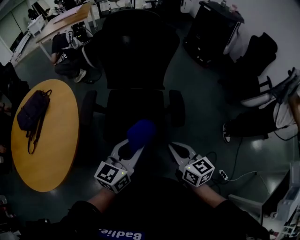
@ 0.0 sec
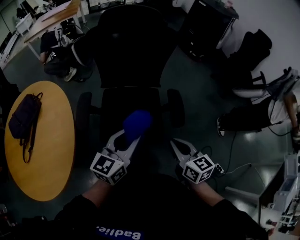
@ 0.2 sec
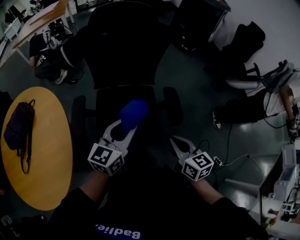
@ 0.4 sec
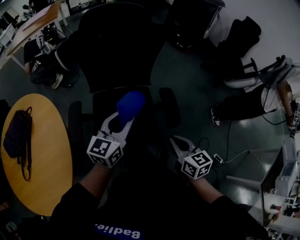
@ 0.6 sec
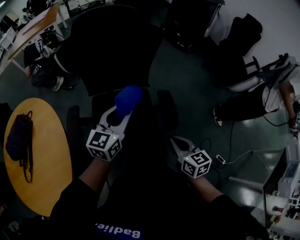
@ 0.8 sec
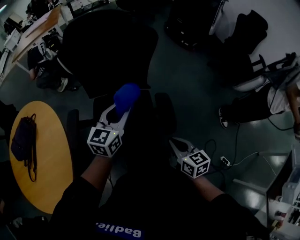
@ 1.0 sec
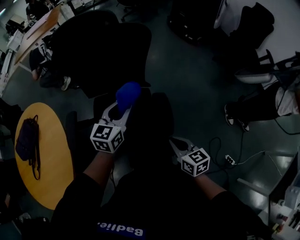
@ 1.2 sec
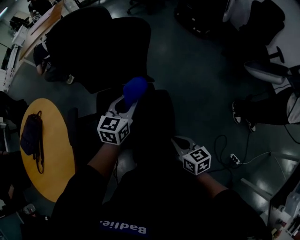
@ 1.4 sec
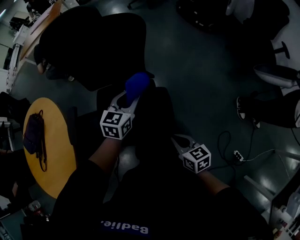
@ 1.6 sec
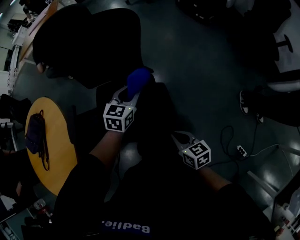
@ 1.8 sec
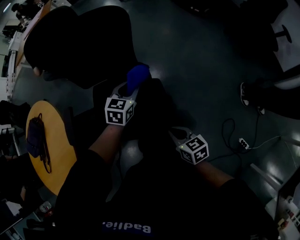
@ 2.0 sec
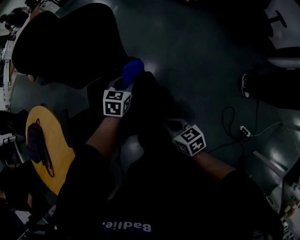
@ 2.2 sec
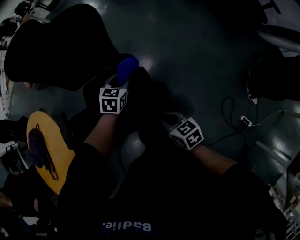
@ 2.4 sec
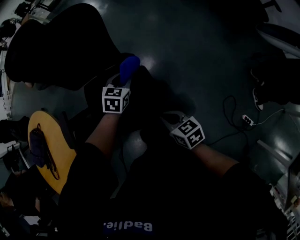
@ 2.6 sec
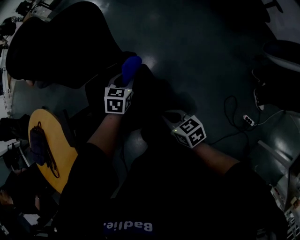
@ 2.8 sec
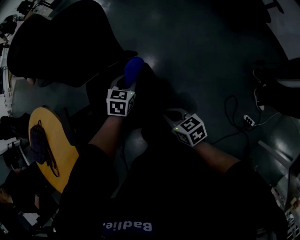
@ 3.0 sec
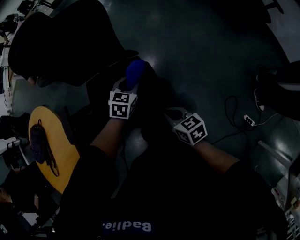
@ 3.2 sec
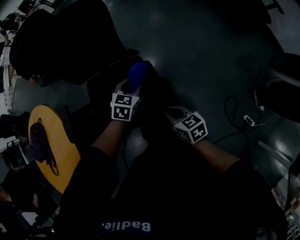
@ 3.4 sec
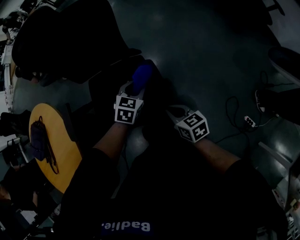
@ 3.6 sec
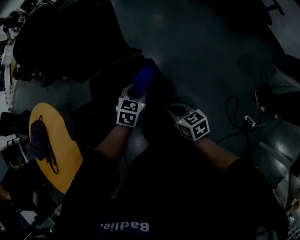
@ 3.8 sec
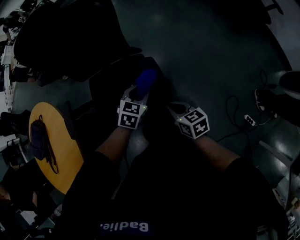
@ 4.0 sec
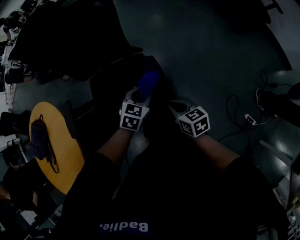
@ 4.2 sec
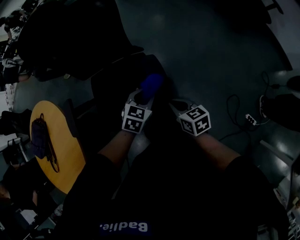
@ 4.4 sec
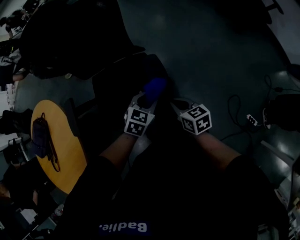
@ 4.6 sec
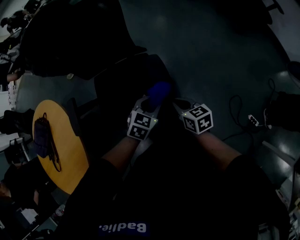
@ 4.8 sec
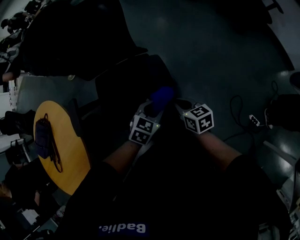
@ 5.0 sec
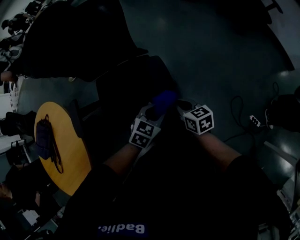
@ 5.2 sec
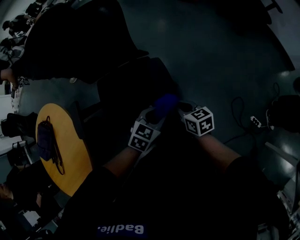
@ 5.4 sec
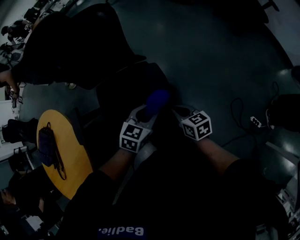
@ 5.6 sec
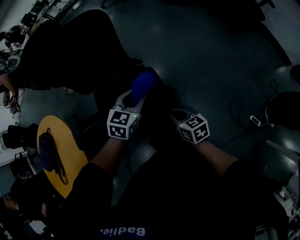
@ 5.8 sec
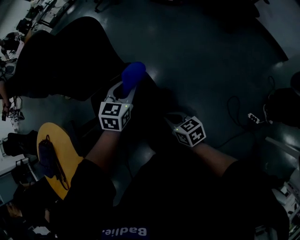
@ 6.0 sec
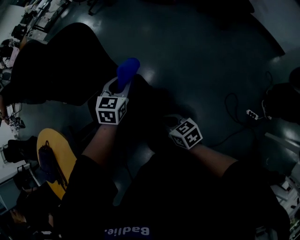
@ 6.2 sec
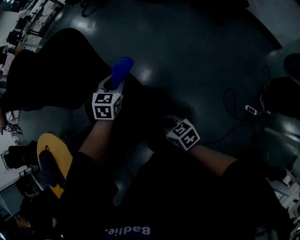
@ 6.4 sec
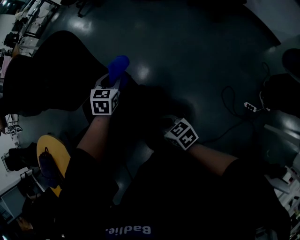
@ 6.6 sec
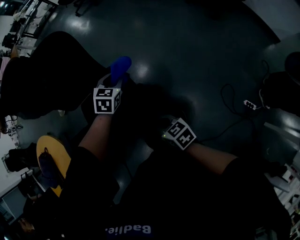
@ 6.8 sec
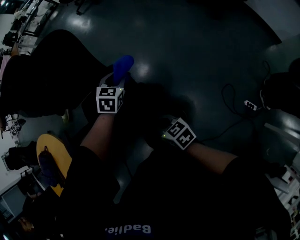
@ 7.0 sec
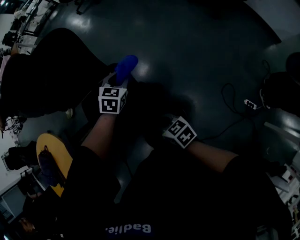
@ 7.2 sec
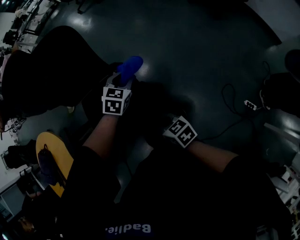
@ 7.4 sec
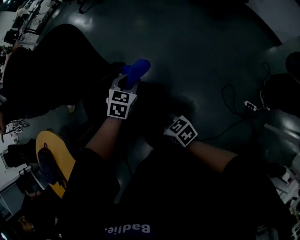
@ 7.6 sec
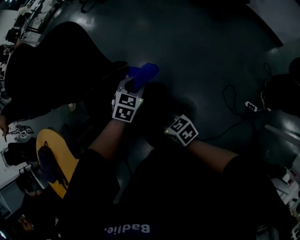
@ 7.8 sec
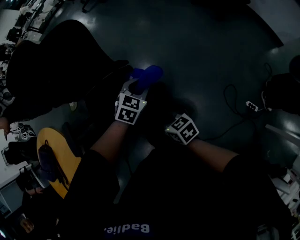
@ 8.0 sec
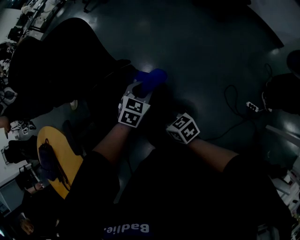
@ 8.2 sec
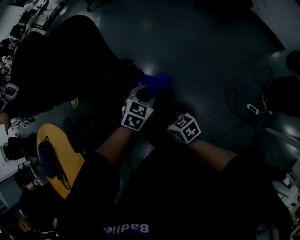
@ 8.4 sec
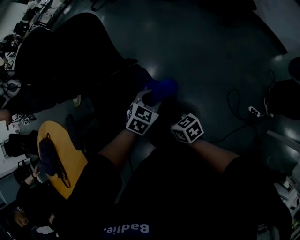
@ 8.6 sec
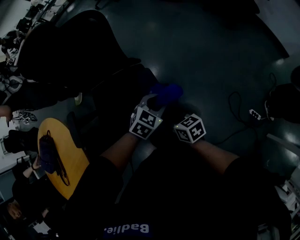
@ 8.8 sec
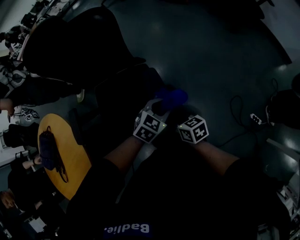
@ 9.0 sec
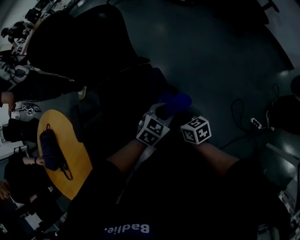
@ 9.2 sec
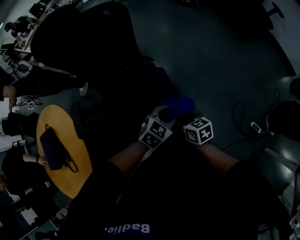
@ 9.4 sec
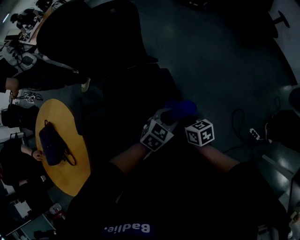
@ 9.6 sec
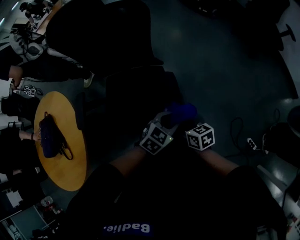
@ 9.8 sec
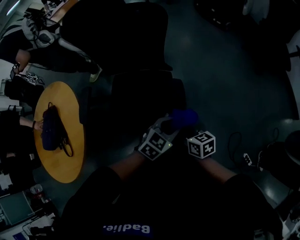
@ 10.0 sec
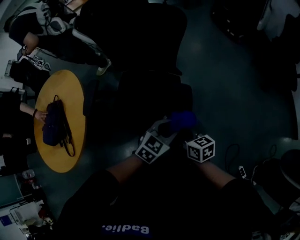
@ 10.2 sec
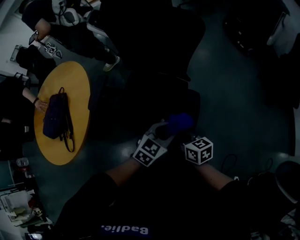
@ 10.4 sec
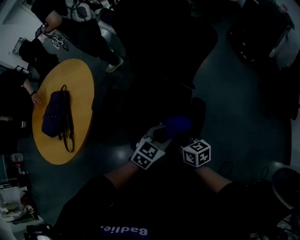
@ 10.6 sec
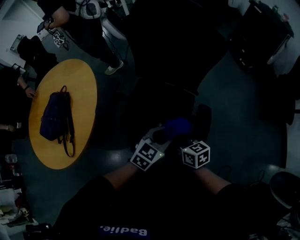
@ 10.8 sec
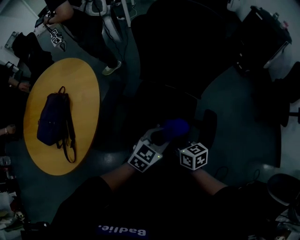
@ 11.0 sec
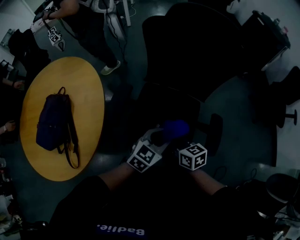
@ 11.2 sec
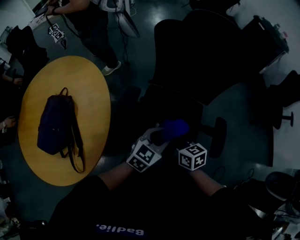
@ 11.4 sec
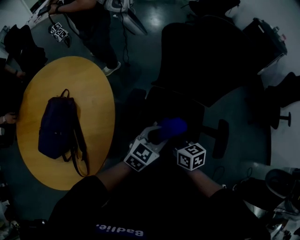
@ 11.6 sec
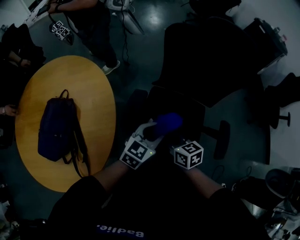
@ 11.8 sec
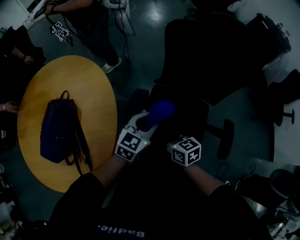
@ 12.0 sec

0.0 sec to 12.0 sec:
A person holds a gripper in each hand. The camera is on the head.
0.0 sec to 1.6 sec: The left gripper goes some 30 cm forward, and turns by about 20 degrees; the right gripper is displaced downward, to the right and forward by roughly 20 cm.
1.6 sec to 3.0 sec: The left gripper heads downward, covering roughly 10 cm, and changes its angle by about 20 degrees.
3.0 sec to 4.4 sec: The left gripper shifts roughly 10 cm backward.
4.4 sec to 6.0 sec: The left gripper travels forward and upward by some 15 cm.
6.0 sec to 7.6 sec: The left gripper goes some 10 cm downward and to the right.
7.6 sec to 9.0 sec: The left gripper is displaced backward by roughly 15 cm.
9.0 sec to 10.4 sec: The right gripper is displaced upward by approximately 5 cm, and rotates some 20 degrees; the left gripper moves to the left and upward, about 10 cm, and changes its angle by some 30 degrees.
10.4 sec to 12.0 sec: The left gripper travels to the left and forward by some 40 cm; the right gripper goes roughly 35 cm to the left.

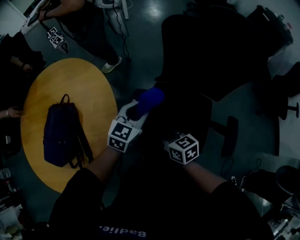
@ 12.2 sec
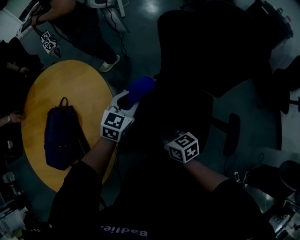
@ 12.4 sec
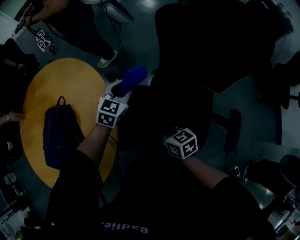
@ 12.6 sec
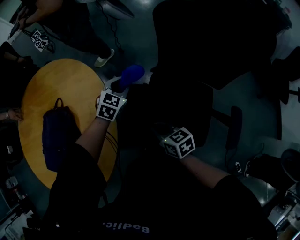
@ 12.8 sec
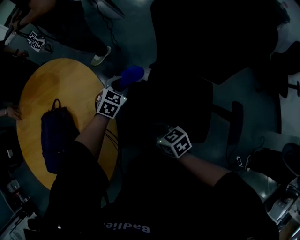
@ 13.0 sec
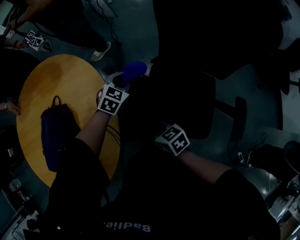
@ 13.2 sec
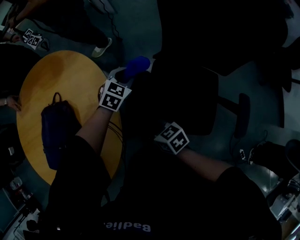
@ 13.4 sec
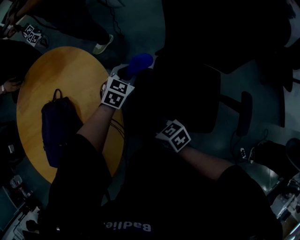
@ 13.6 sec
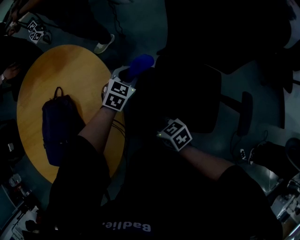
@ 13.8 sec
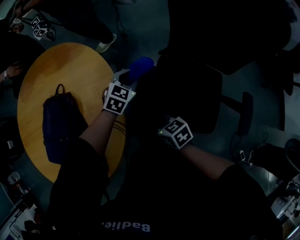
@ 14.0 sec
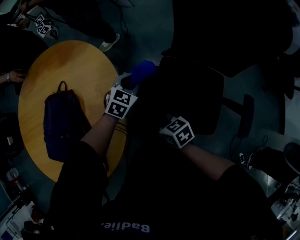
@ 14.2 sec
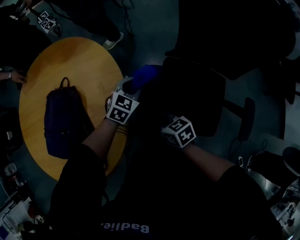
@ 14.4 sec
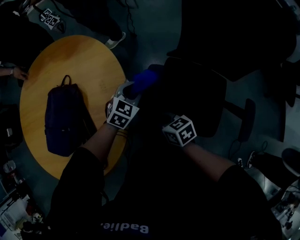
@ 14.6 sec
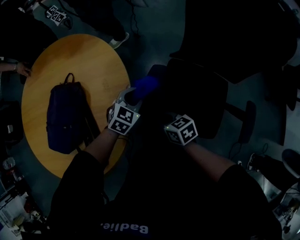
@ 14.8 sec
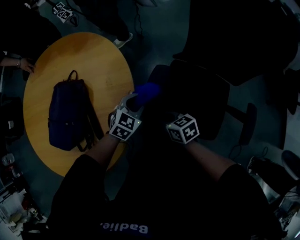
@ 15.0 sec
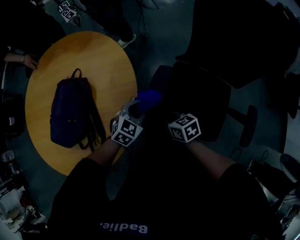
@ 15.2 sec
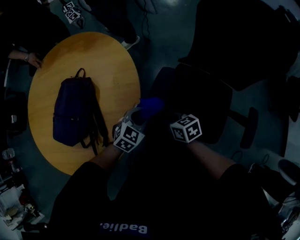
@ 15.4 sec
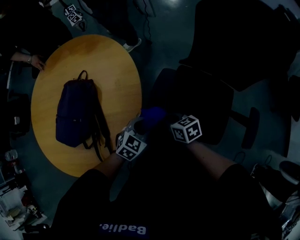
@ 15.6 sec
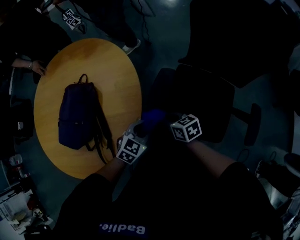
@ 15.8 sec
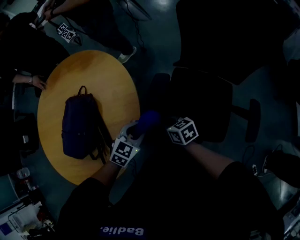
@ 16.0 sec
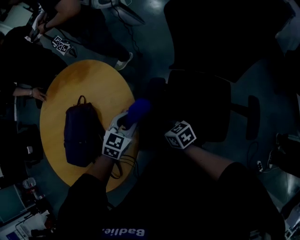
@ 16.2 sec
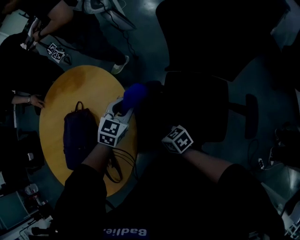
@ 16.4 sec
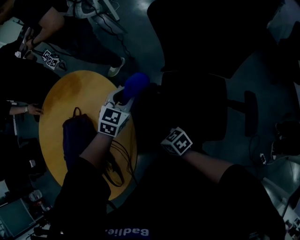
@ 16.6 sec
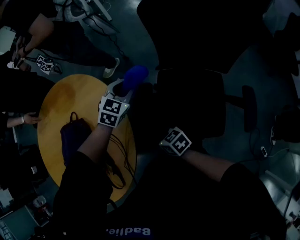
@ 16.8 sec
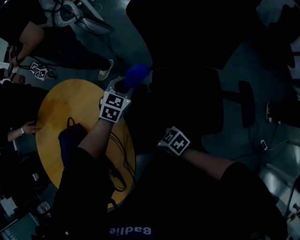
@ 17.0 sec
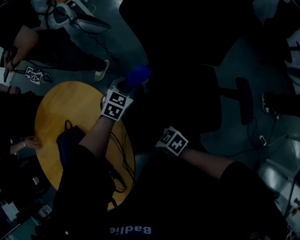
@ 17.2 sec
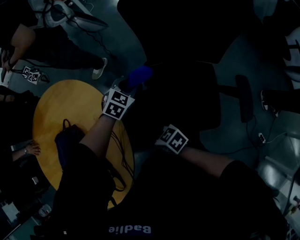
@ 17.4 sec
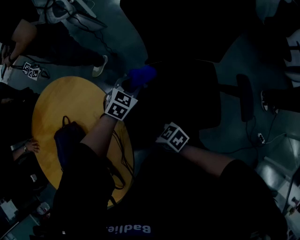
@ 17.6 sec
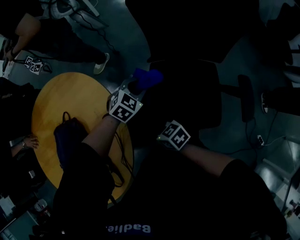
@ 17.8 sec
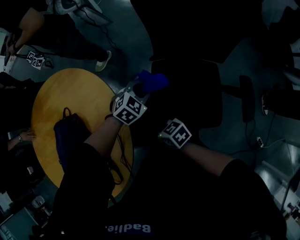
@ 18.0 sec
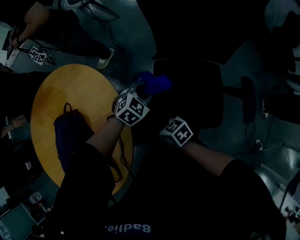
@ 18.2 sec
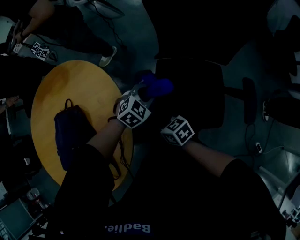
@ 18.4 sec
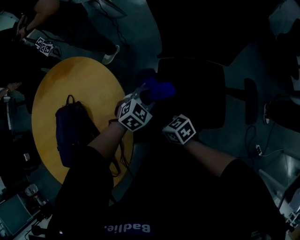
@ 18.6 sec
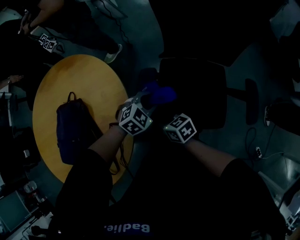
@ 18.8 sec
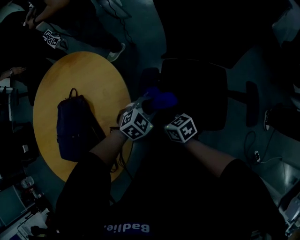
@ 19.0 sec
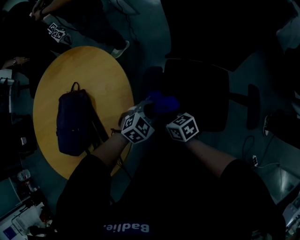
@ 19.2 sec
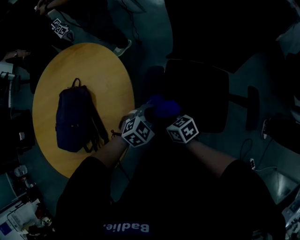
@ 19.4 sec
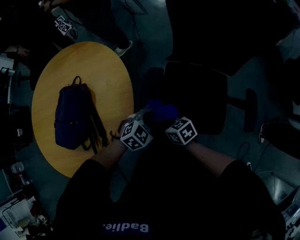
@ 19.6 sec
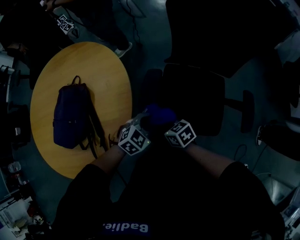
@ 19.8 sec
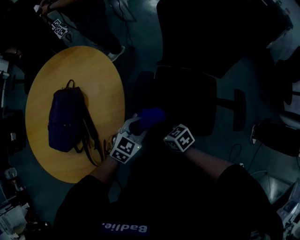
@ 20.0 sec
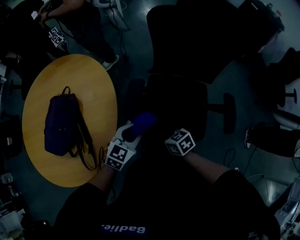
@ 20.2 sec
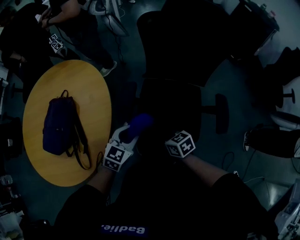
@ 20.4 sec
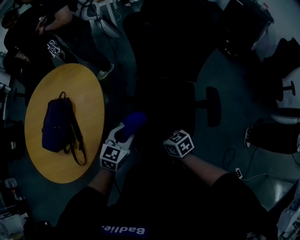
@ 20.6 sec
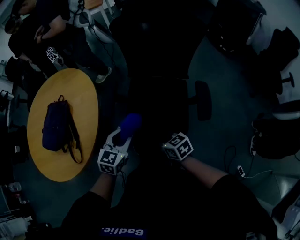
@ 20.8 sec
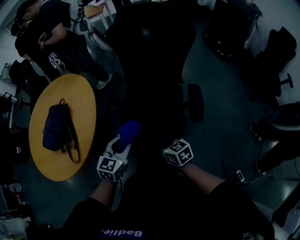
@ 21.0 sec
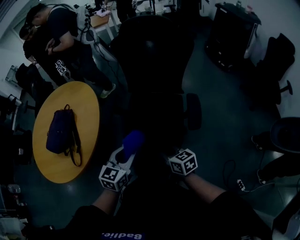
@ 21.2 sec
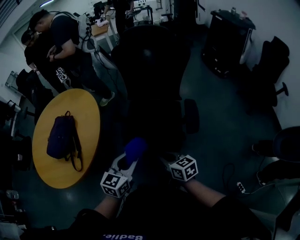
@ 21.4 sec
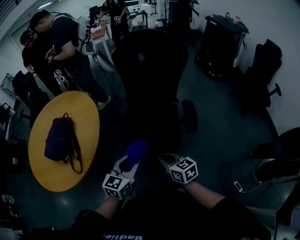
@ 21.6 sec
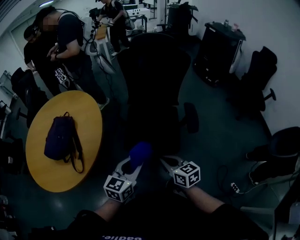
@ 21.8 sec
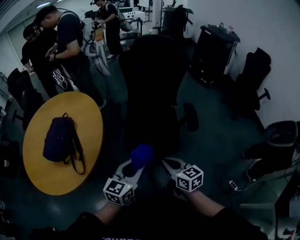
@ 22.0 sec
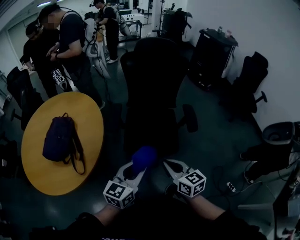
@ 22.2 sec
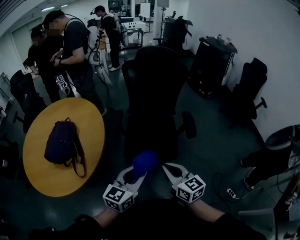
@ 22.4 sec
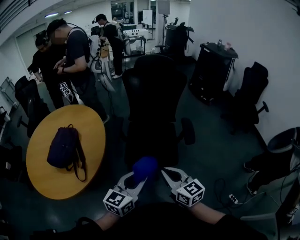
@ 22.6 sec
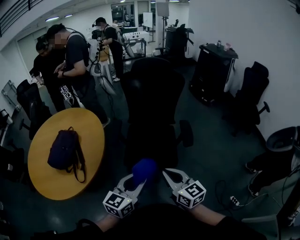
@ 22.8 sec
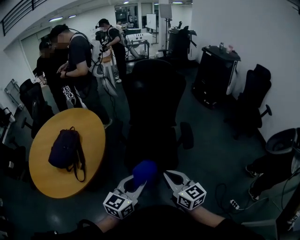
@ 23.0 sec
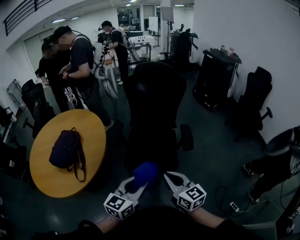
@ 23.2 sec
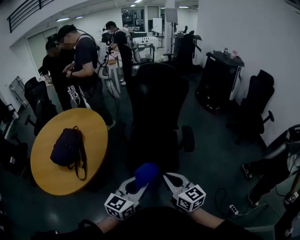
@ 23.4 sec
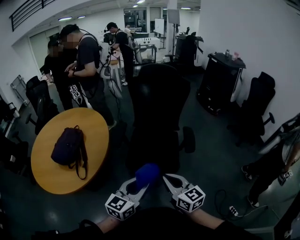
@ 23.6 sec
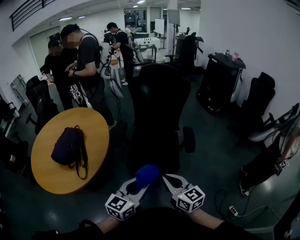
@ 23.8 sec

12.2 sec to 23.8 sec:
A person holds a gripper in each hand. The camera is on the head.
12.2 sec to 13.6 sec: The left gripper shifts roughly 15 cm forward and downward, and changes its angle by some 20 degrees, while the right gripper travels to the left by roughly 10 cm.
13.6 sec to 15.0 sec: The left gripper travels backward and to the left by approximately 15 cm.
15.0 sec to 16.6 sec: The left gripper goes about 15 cm forward, upward and to the right.
16.6 sec to 18.0 sec: The left gripper goes approximately 10 cm to the right and downward, and swivels some 20 degrees.
18.0 sec to 19.4 sec: The left gripper moves backward, about 15 cm.
19.4 sec to 21.0 sec: The right gripper shifts about 30 cm to the right and backward. The left gripper travels backward, upward and to the right by roughly 25 cm, and turns by some 40 degrees.
21.0 sec to 22.4 sec: The left gripper moves backward and upward, roughly 20 cm, and changes its angle by roughly 20 degrees, while the right gripper travels upward and backward by approximately 20 cm, and swivels about 30 degrees.
22.4 sec to 23.8 sec: The right gripper moves approximately 5 cm. Meanwhile the left gripper shifts about 5 cm to the right.
